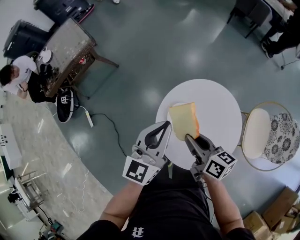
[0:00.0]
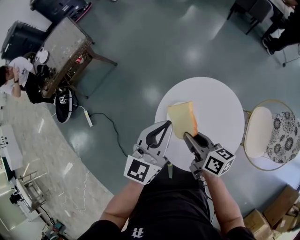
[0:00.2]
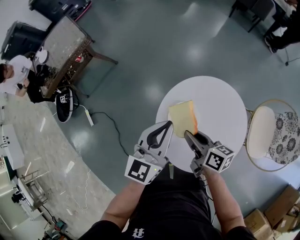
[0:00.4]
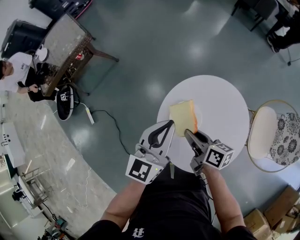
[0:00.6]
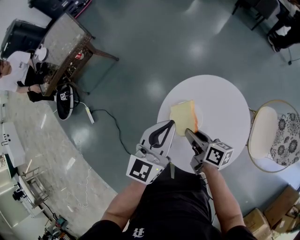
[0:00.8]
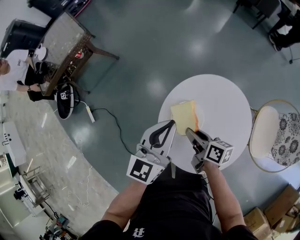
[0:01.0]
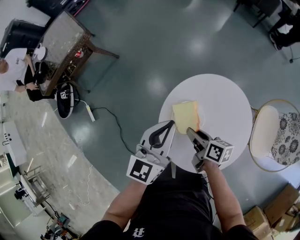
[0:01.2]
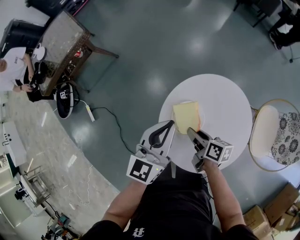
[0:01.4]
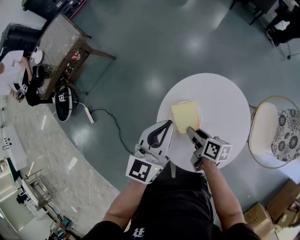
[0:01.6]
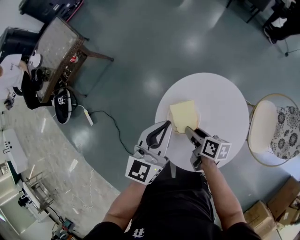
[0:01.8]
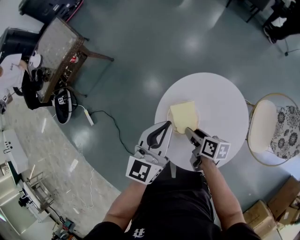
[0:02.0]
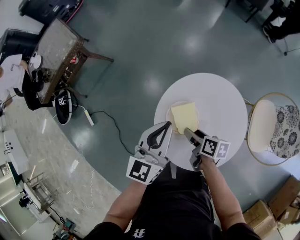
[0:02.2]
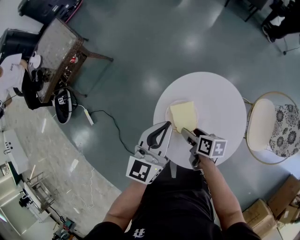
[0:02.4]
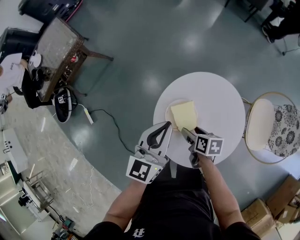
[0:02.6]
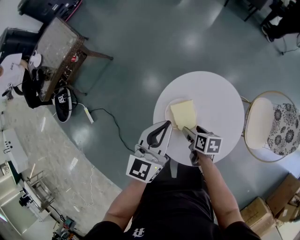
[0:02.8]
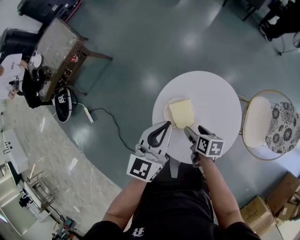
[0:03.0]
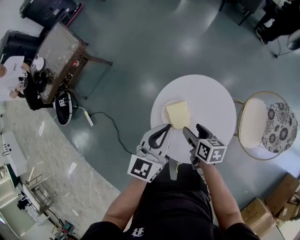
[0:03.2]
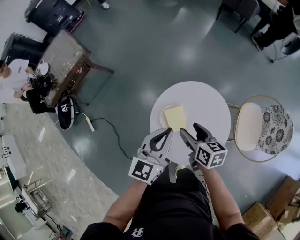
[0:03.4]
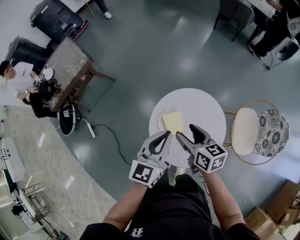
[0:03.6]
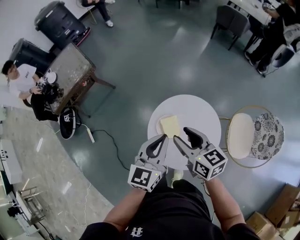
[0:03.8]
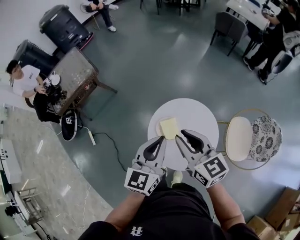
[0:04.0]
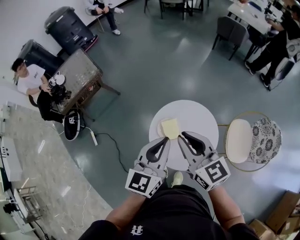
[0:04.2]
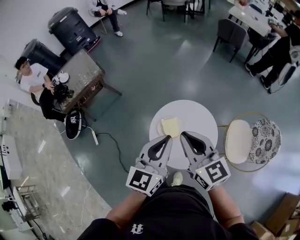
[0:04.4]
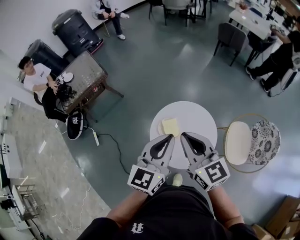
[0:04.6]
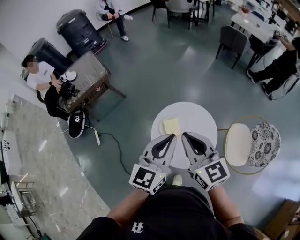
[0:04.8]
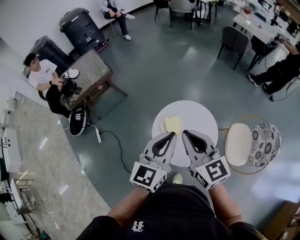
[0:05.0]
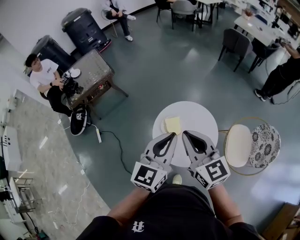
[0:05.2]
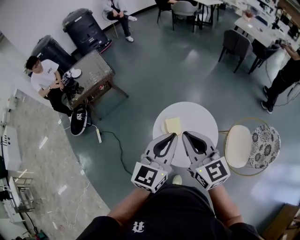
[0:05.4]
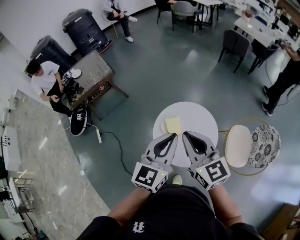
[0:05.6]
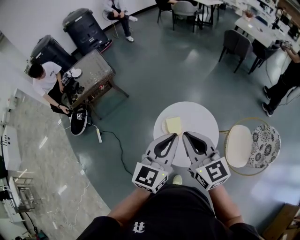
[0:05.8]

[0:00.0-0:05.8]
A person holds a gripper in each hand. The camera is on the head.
0:00.0 to 0:01.4: The left gripper travels downward by about 5 cm. Meanwhile the right gripper goes about 15 cm downward, and turns by about 20 degrees.
0:01.4 to 0:02.8: The right gripper changes its angle by some 20 degrees, and opens.
0:02.8 to 0:04.4: The right gripper shifts some 50 cm upward, tilts its fingers approximately 50 degrees upward, and closes; the left gripper heads upward and backward, covering about 25 cm.
0:04.4 to 0:05.8: The two grippers go about 5 cm backward.

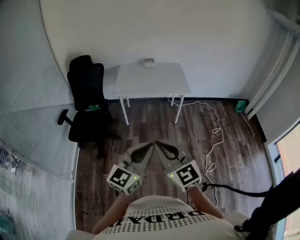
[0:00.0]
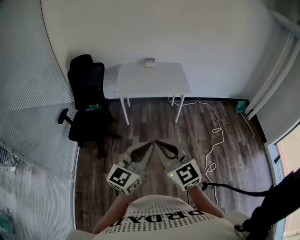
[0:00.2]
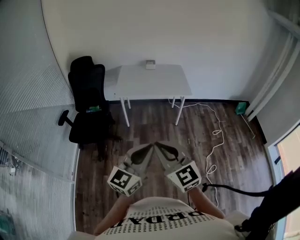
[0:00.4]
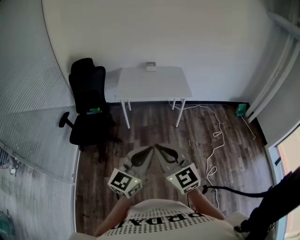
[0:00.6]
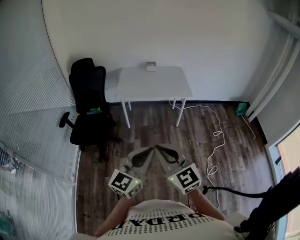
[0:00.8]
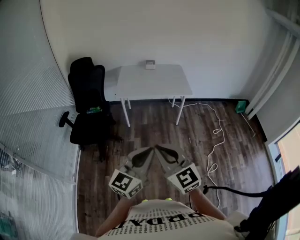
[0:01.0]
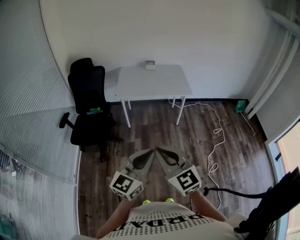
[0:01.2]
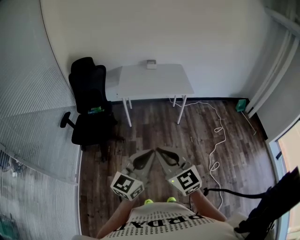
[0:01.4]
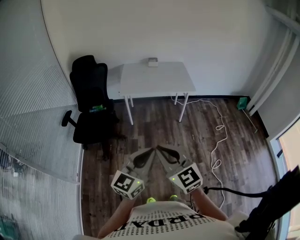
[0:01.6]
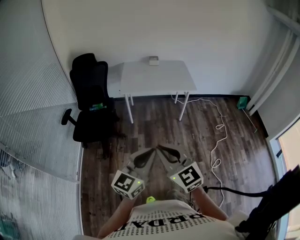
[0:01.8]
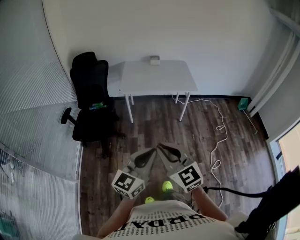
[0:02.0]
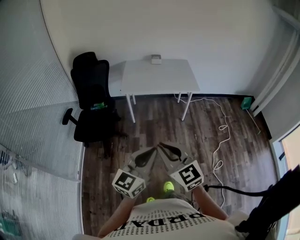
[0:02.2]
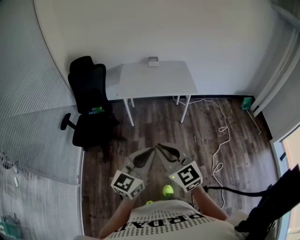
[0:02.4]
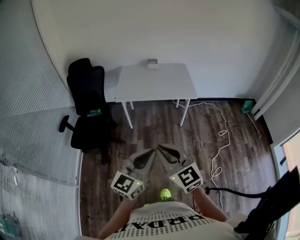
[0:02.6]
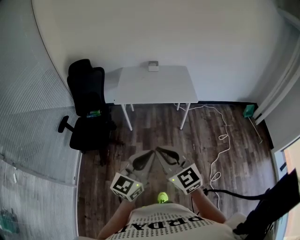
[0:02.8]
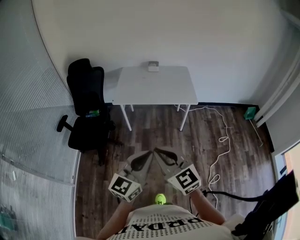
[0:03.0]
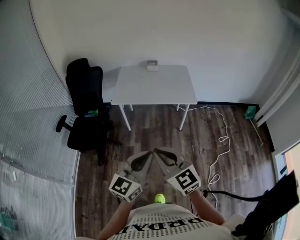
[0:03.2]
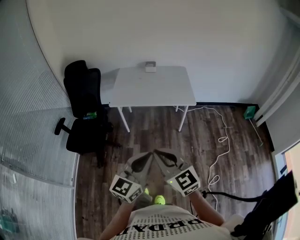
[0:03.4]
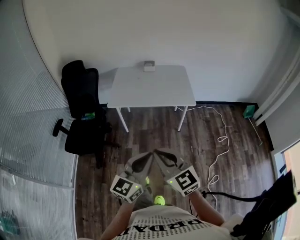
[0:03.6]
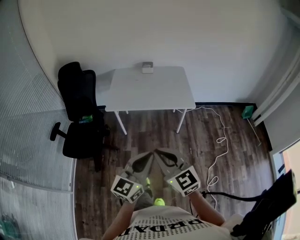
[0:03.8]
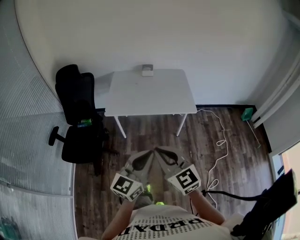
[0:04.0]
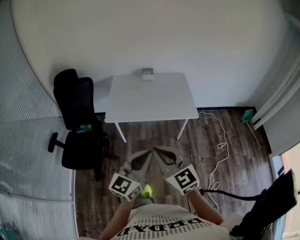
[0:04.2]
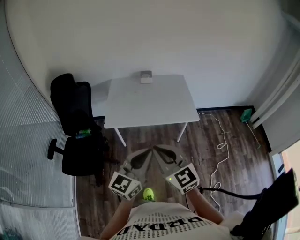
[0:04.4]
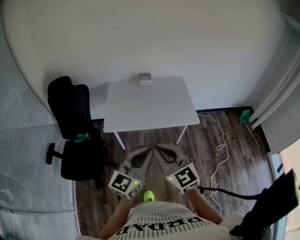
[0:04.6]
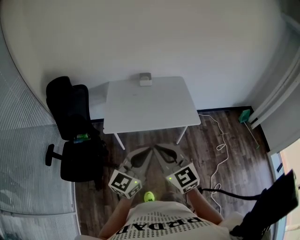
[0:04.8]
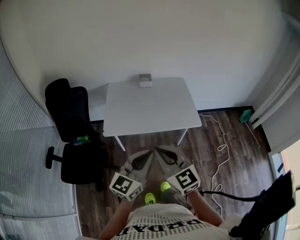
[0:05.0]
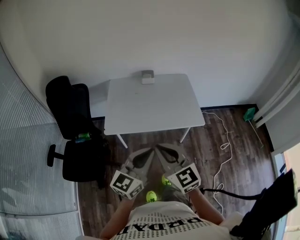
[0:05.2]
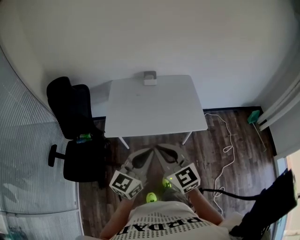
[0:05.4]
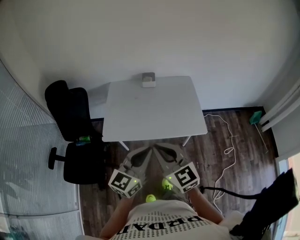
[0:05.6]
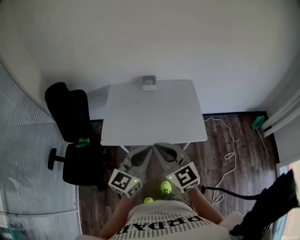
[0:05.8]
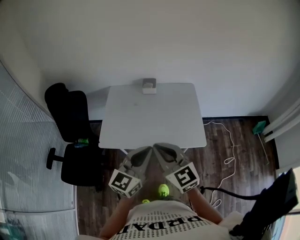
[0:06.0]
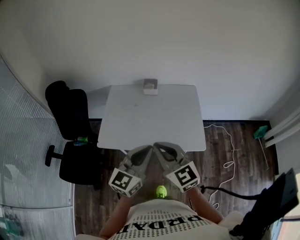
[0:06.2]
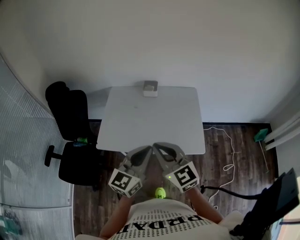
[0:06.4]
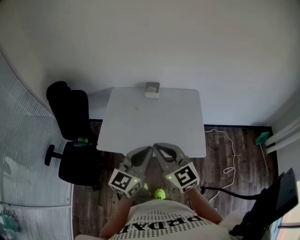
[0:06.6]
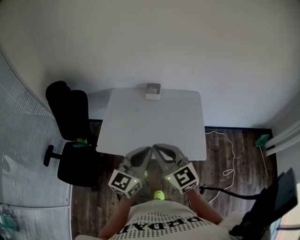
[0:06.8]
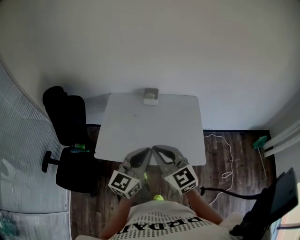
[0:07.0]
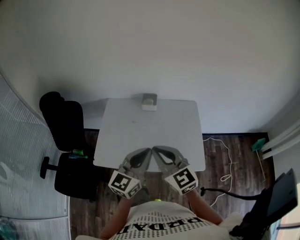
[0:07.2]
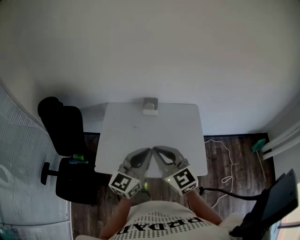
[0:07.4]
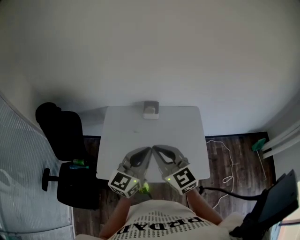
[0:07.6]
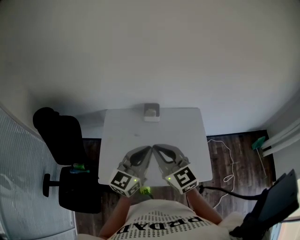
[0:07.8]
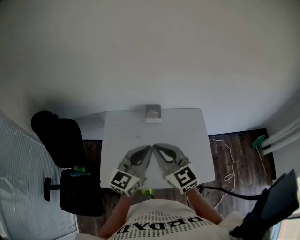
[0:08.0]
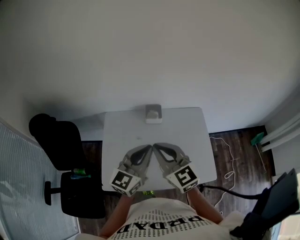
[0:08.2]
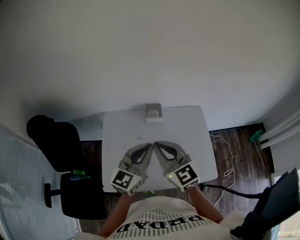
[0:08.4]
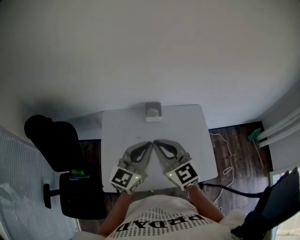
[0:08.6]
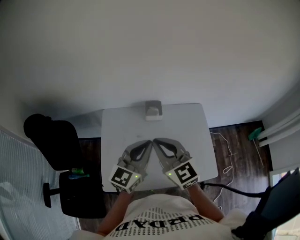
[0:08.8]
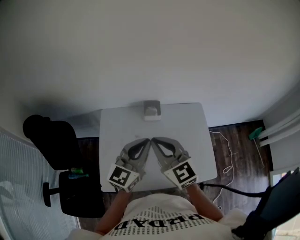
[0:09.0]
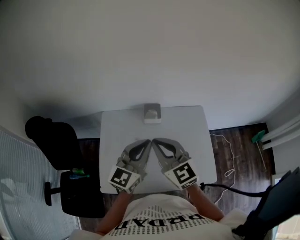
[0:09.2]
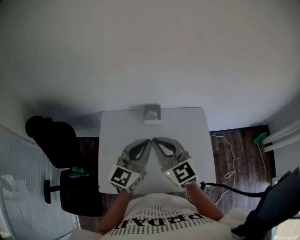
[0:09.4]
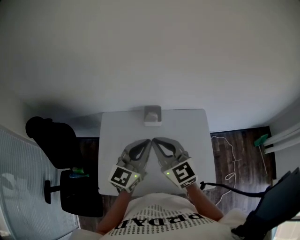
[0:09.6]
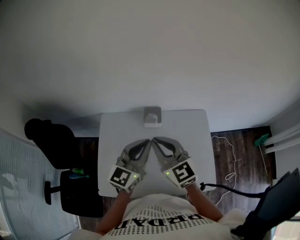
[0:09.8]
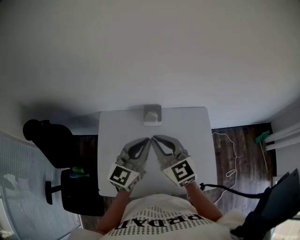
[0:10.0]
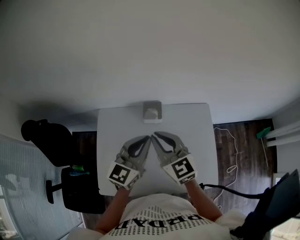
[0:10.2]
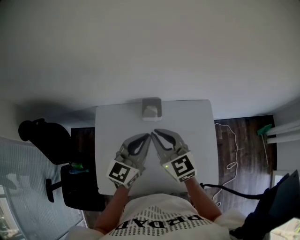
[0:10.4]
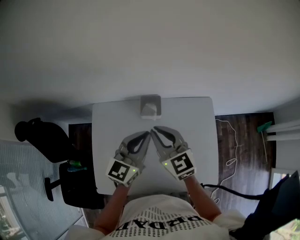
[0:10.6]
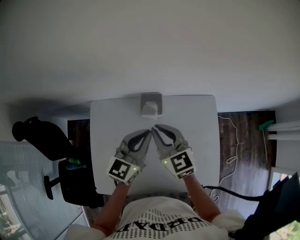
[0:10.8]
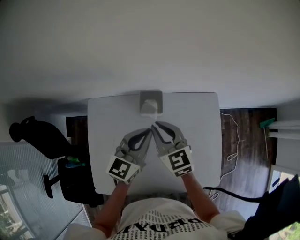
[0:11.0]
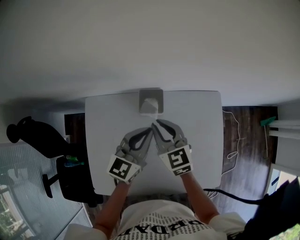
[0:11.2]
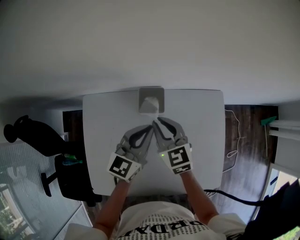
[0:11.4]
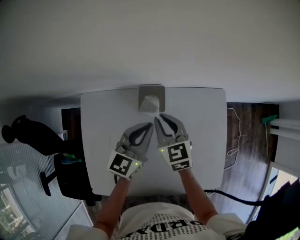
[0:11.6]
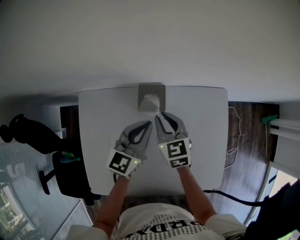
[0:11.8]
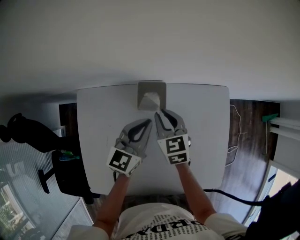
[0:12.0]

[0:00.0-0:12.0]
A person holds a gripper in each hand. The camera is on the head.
0:00.0 to 0:01.6: The grippers both shift to the left by about 5 cm.
0:01.6 to 0:03.0: Both grippers travel together forward and to the right, approximately 20 cm.
0:03.0 to 0:04.4: The grippers both shift forward by roughly 25 cm.
0:04.4 to 0:06.0: The two grippers go approximately 25 cm forward.
0:06.0 to 0:07.6: Both grippers move forward, roughly 25 cm.
0:07.6 to 0:09.0: Both grippers move forward and to the left, approximately 15 cm.
0:09.0 to 0:10.4: The grippers both shift forward and downward by approximately 15 cm.
0:10.4 to 0:12.0: The grippers both shift downward and forward by roughly 25 cm. The right gripper changes its angle by approximately 20 degrees.

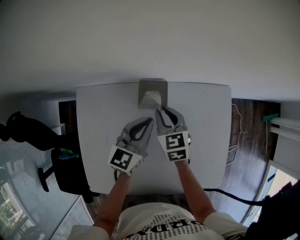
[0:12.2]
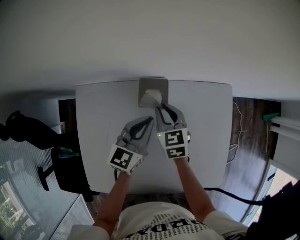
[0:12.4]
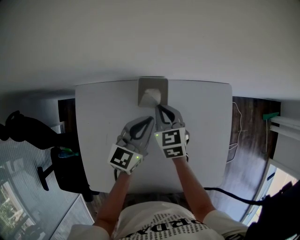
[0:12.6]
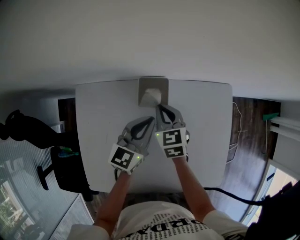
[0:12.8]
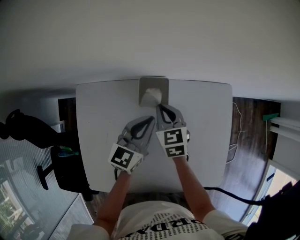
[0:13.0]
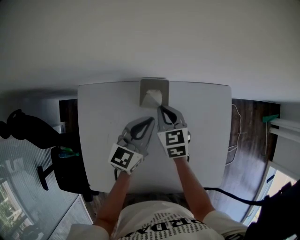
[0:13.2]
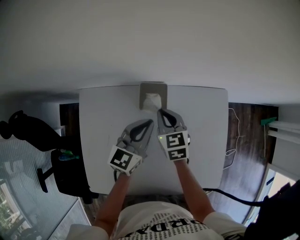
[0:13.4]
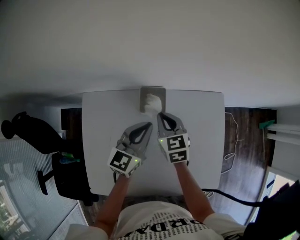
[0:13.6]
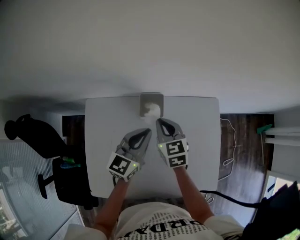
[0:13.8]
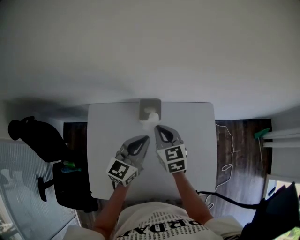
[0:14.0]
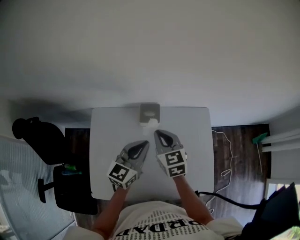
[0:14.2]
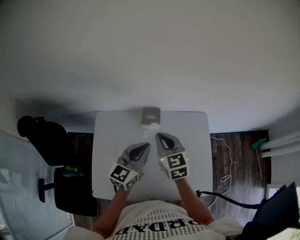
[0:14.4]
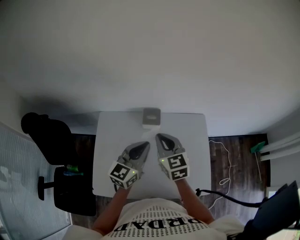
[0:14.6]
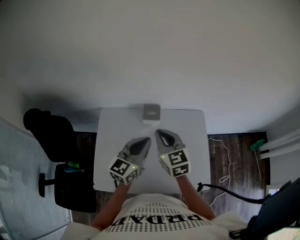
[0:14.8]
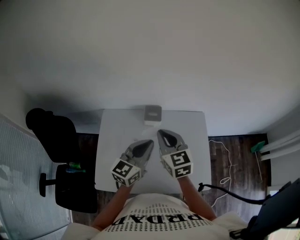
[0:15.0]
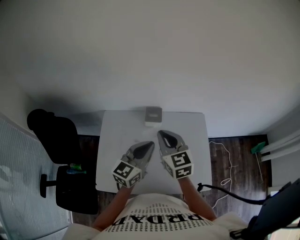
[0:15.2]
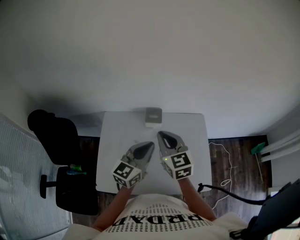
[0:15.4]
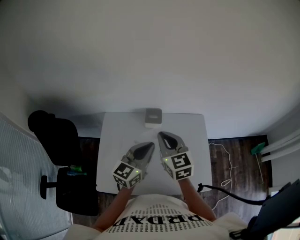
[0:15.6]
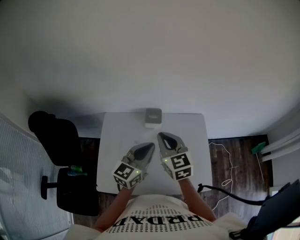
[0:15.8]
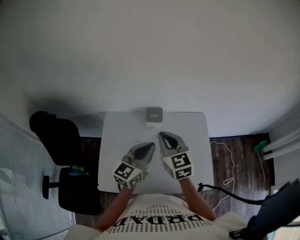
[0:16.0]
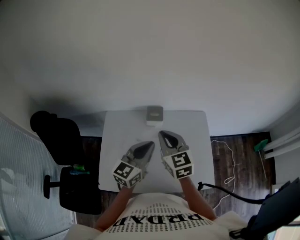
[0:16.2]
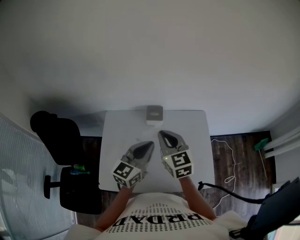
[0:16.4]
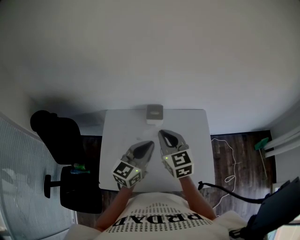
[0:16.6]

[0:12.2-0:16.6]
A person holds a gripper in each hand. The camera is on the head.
0:12.2 to 0:13.6: The grippers stay close to where they were, moving slightly.
0:13.6 to 0:15.2: The left gripper heads backward and upward, covering some 25 cm, while the right gripper goes about 30 cm upward and backward.
0:15.2 to 0:16.6: Neither gripper changes place.

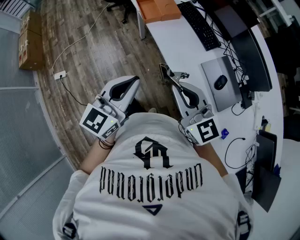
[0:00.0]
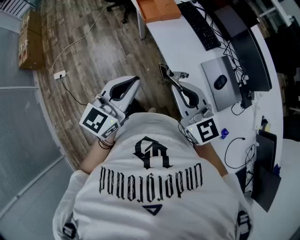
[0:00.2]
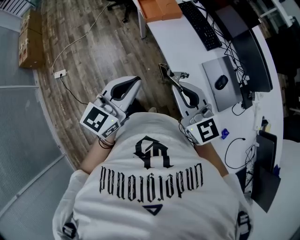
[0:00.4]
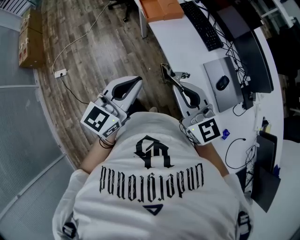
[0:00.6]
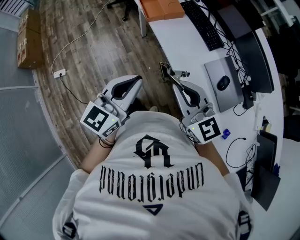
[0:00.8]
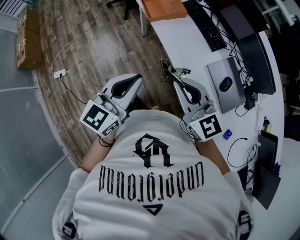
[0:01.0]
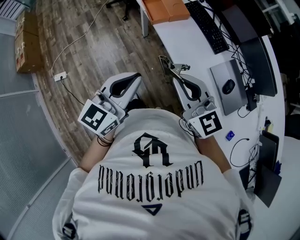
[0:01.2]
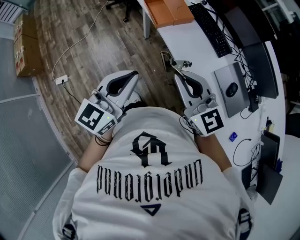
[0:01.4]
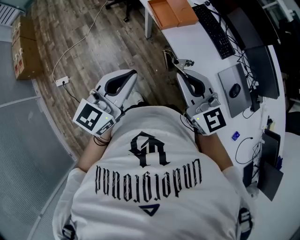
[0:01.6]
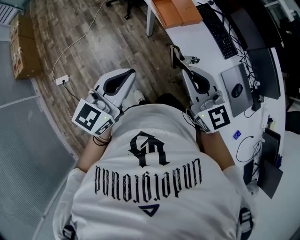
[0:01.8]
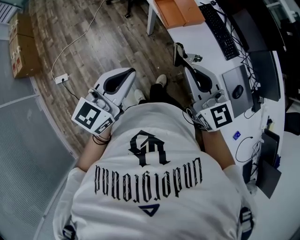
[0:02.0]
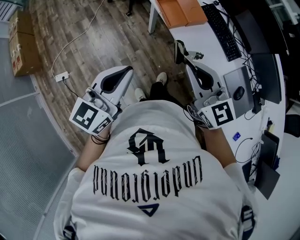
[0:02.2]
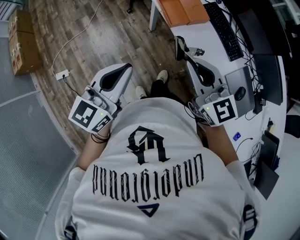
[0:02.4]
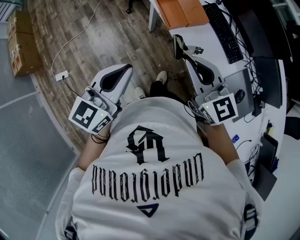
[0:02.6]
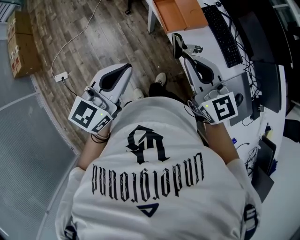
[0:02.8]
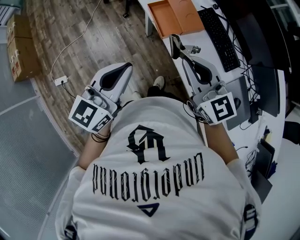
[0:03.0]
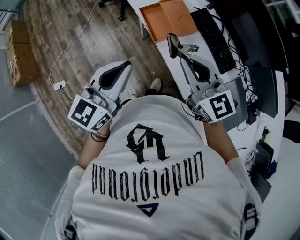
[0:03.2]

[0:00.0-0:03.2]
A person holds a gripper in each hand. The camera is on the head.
0:00.0 to 0:01.6: The left gripper is displaced to the left and forward by roughly 20 cm. The right gripper shifts approximately 20 cm forward and to the left.
0:01.6 to 0:03.2: The two grippers go roughly 20 cm forward.
